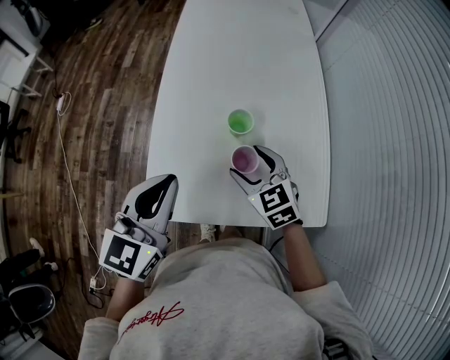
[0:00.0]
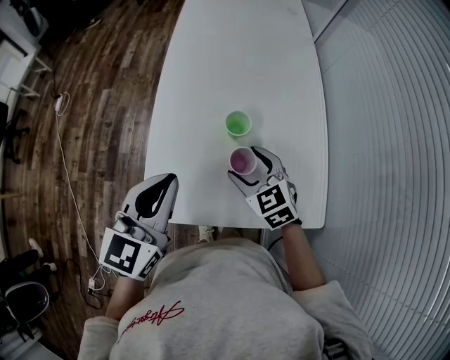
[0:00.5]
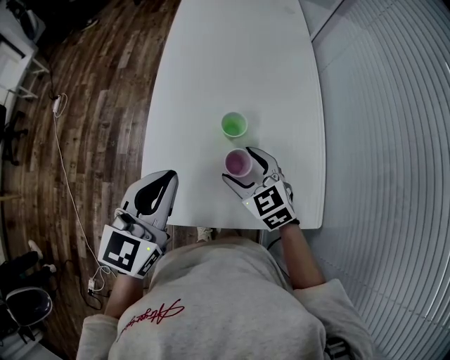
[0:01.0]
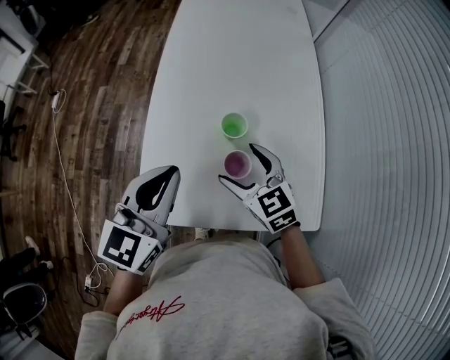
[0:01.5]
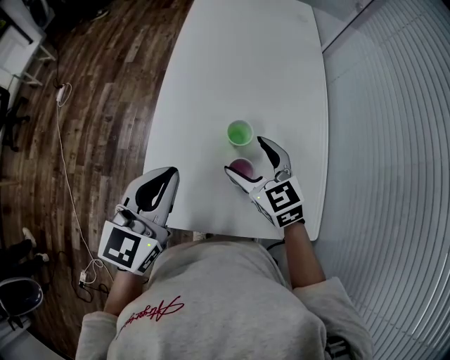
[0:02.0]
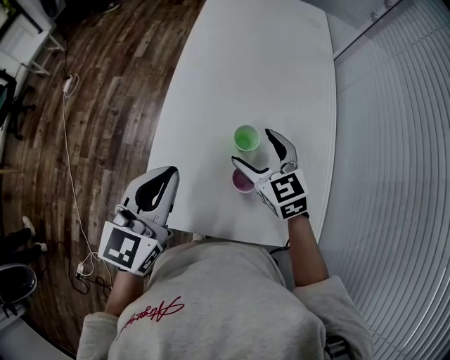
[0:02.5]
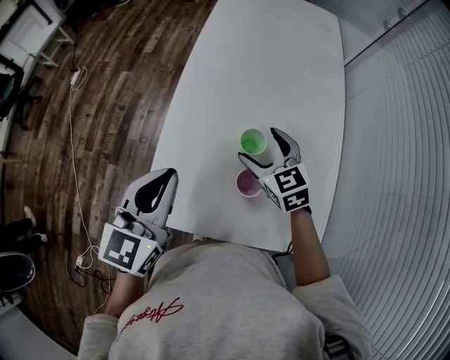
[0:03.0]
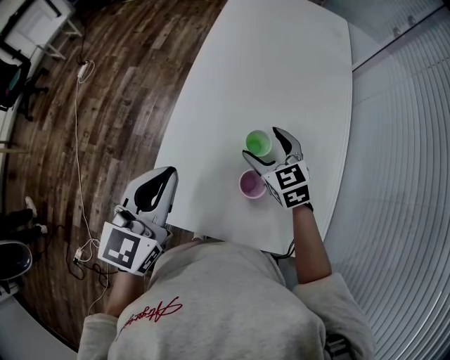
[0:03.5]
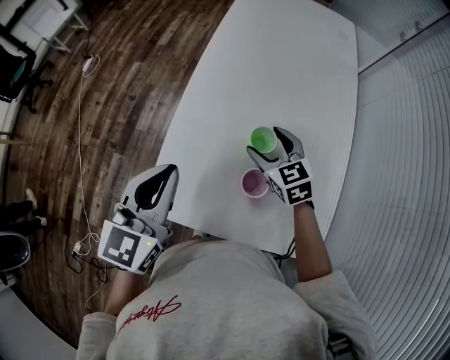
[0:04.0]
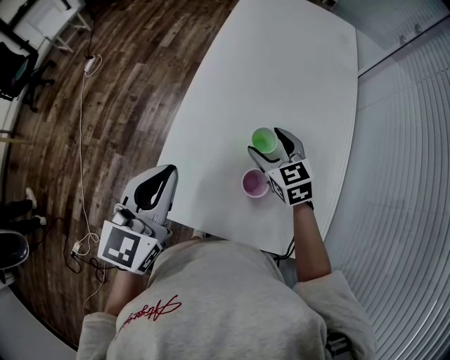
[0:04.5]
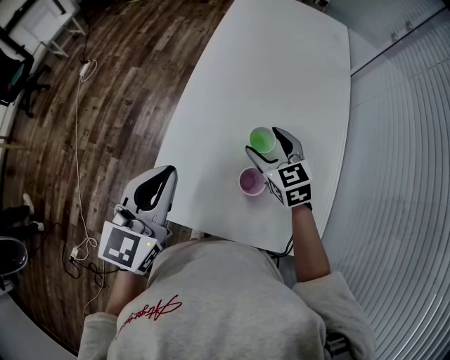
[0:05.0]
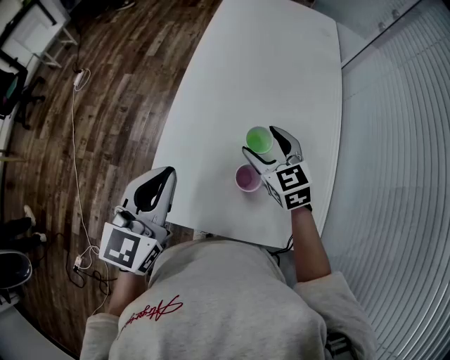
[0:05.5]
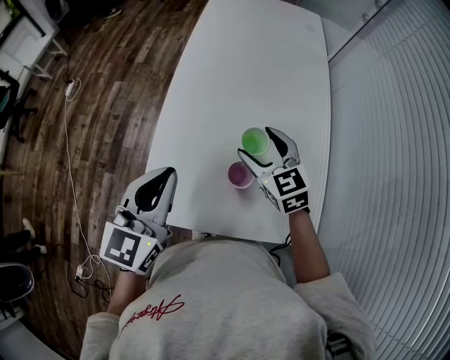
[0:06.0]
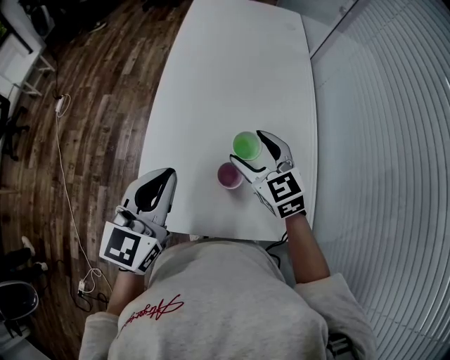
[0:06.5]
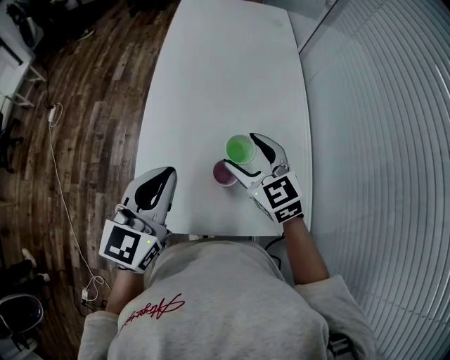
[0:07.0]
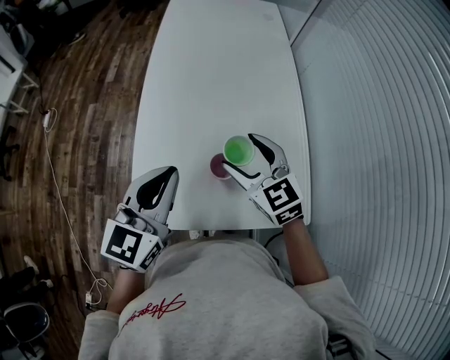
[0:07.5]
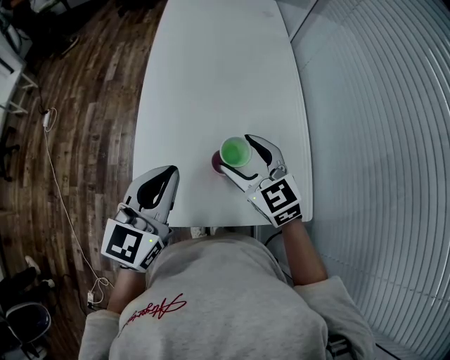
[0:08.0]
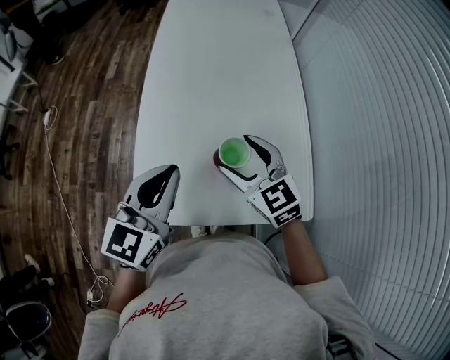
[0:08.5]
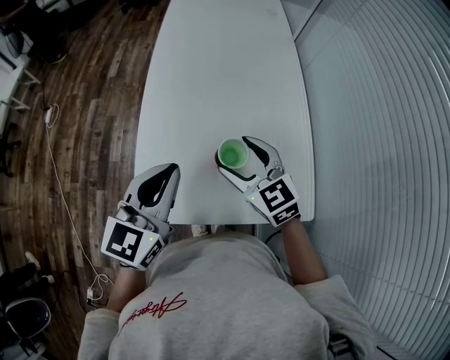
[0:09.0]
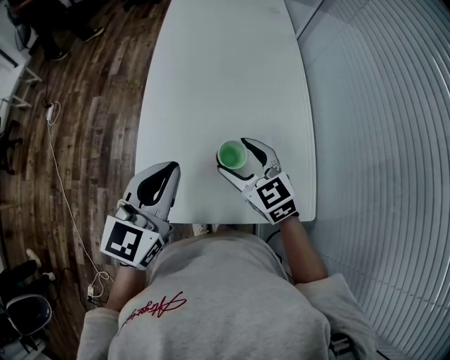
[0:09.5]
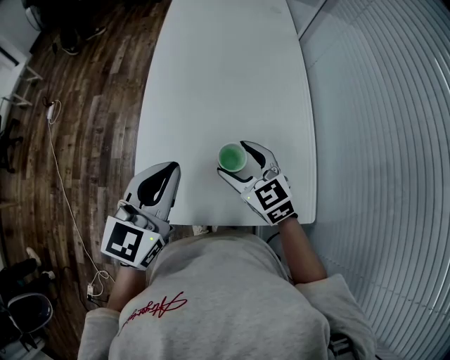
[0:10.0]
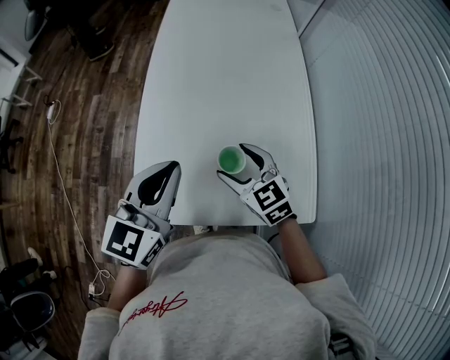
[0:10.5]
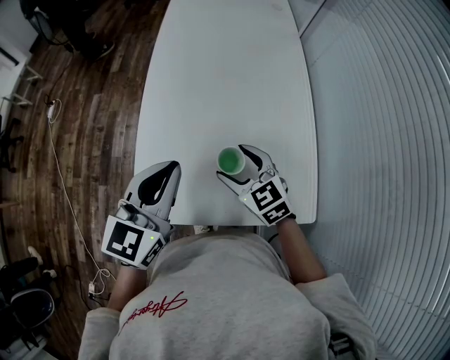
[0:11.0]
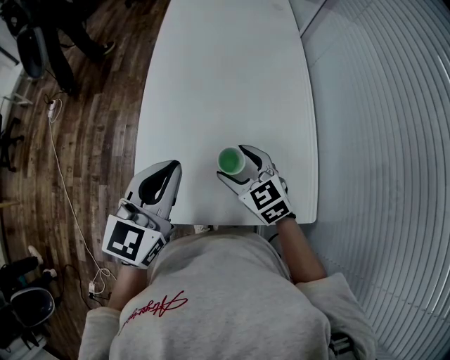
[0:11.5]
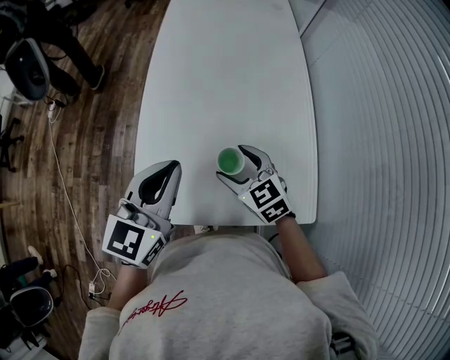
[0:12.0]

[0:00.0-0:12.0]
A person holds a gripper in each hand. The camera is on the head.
0:00.0 to 0:02.0: The right gripper ends up some 5 cm from where it was.
0:02.0 to 0:04.0: The right gripper moves forward and downward, approximately 10 cm.
0:04.0 to 0:06.0: The right gripper heads upward, covering approximately 5 cm.
0:06.0 to 0:08.0: The right gripper shifts roughly 10 cm backward.
0:08.0 to 0:10.0: The right gripper heads downward, covering approximately 5 cm.
0:10.0 to 0:12.0: The grippers make only small movements.

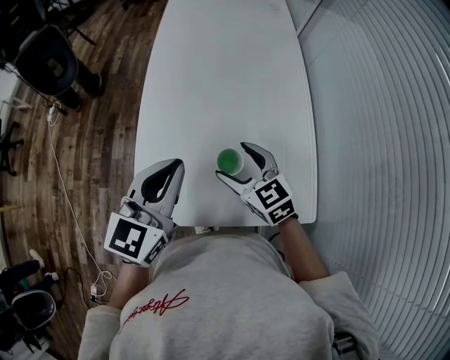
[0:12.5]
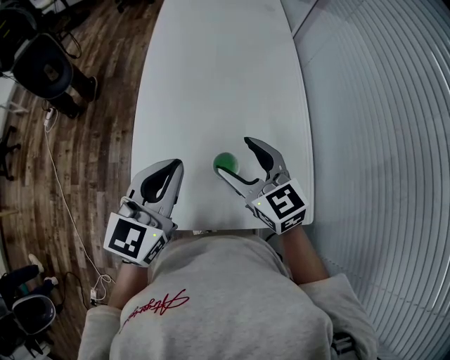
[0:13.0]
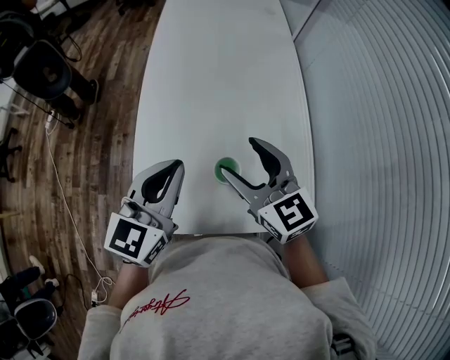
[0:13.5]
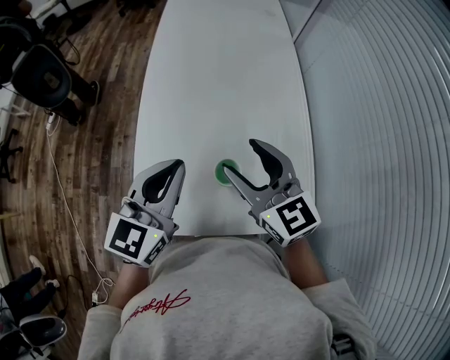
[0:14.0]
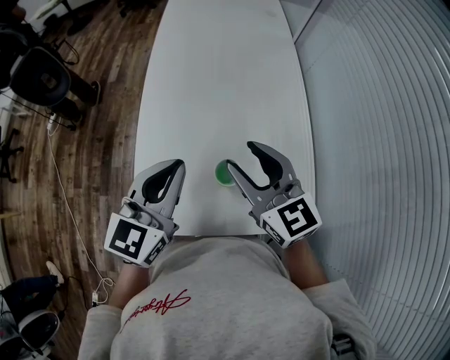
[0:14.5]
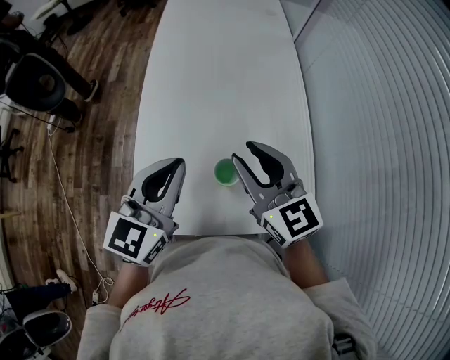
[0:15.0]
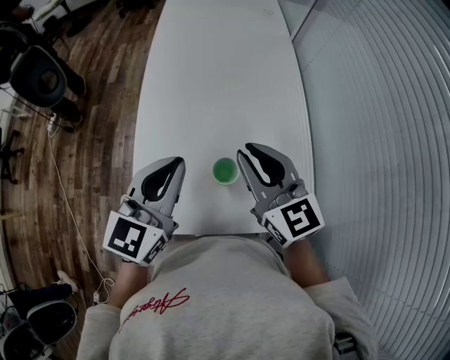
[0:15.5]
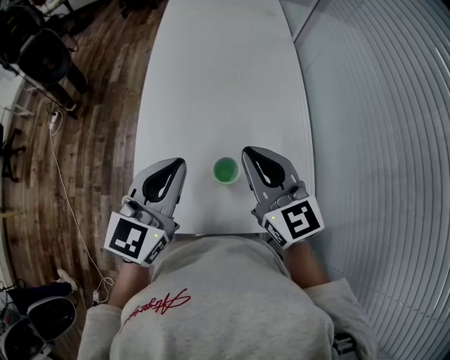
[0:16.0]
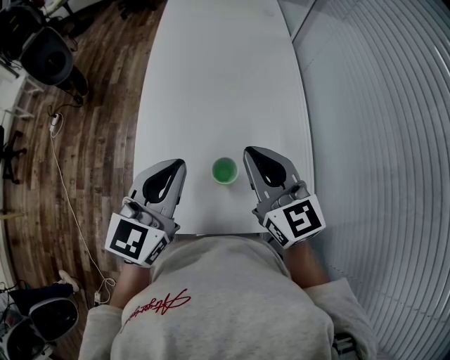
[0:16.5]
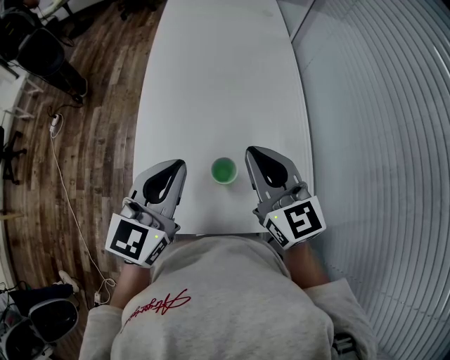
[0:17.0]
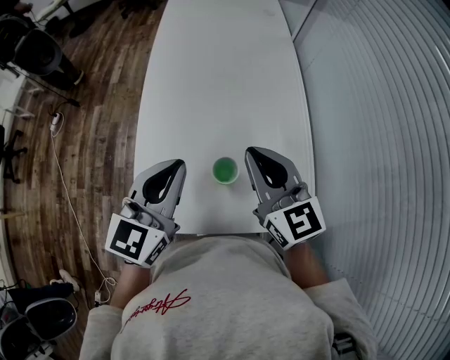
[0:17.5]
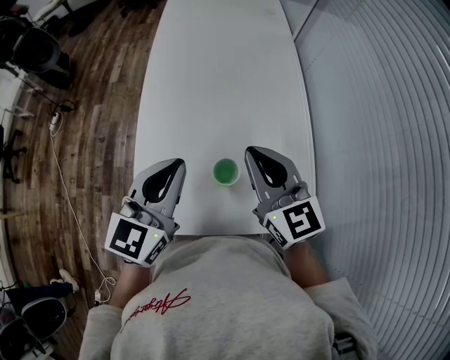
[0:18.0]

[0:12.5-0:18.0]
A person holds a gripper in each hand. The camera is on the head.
0:12.5 to 0:14.5: The right gripper heads upward, covering approximately 10 cm, and closes its fingers.
0:14.5 to 0:16.0: The right gripper closes up.
0:16.0 to 0:18.0: The two grippers keep their place.

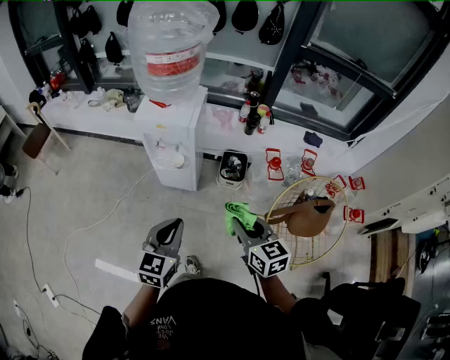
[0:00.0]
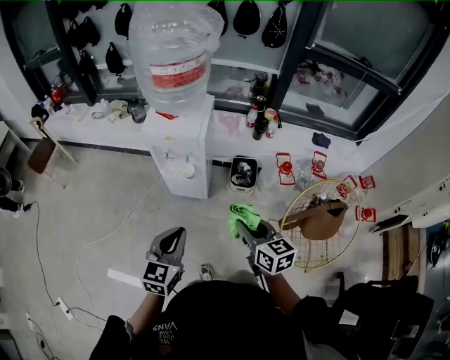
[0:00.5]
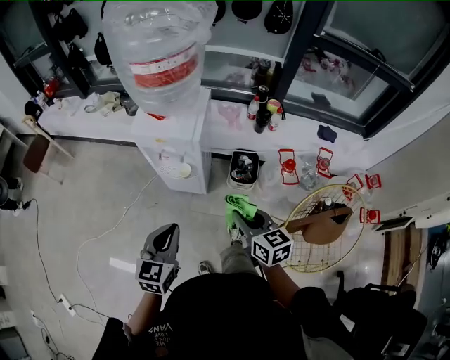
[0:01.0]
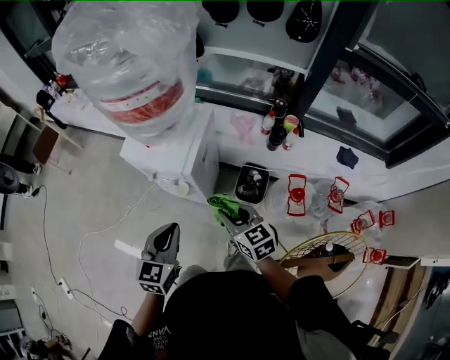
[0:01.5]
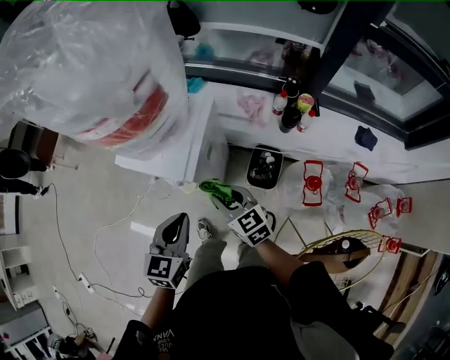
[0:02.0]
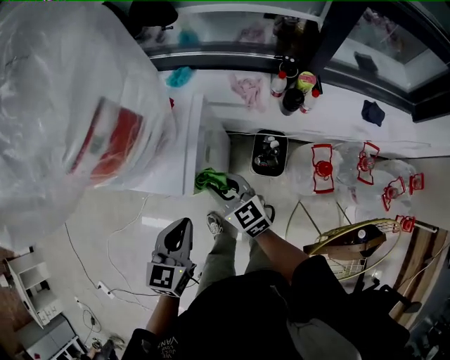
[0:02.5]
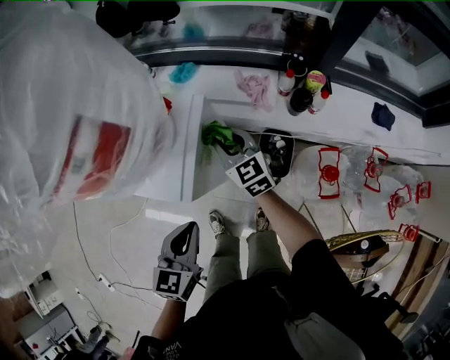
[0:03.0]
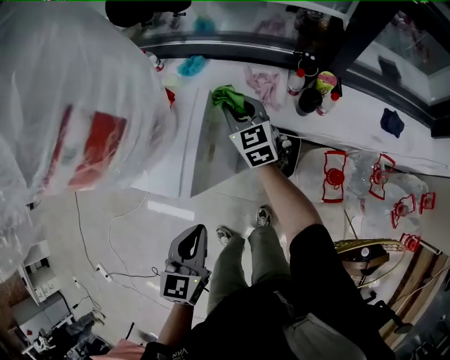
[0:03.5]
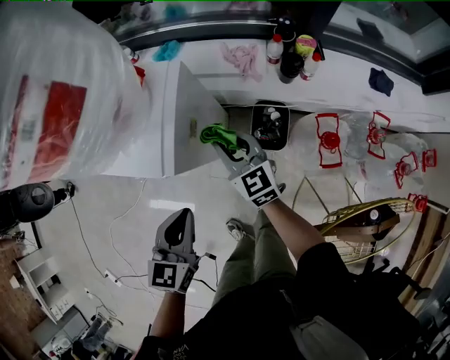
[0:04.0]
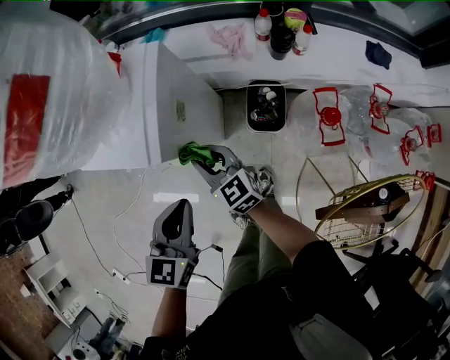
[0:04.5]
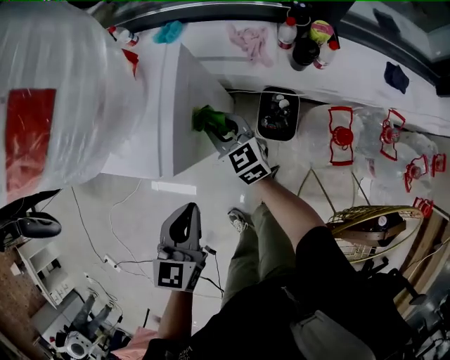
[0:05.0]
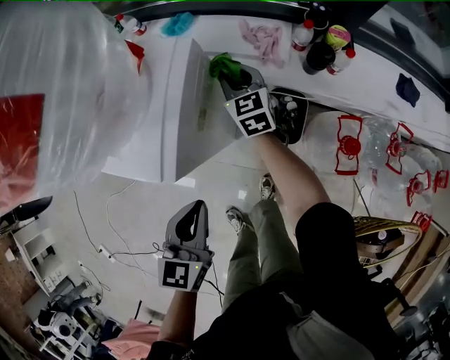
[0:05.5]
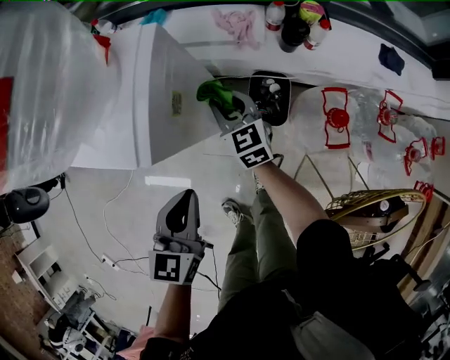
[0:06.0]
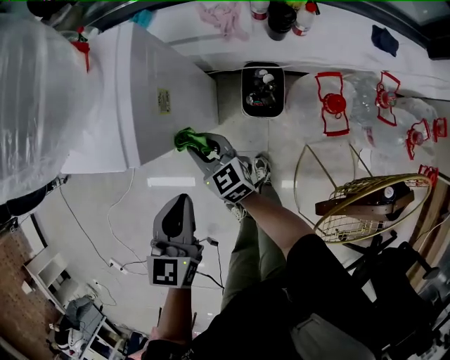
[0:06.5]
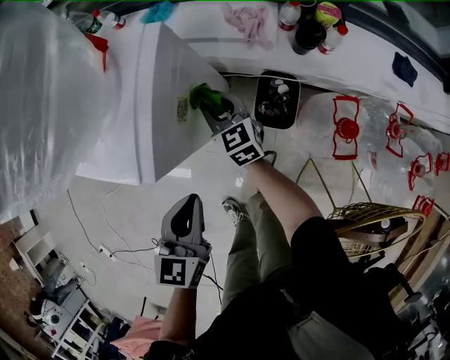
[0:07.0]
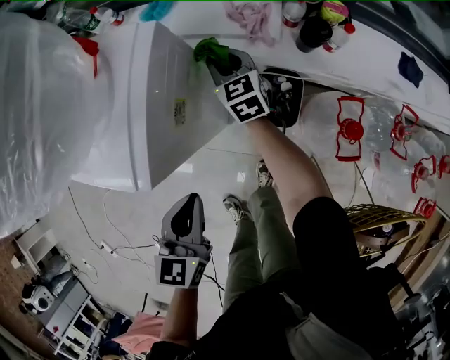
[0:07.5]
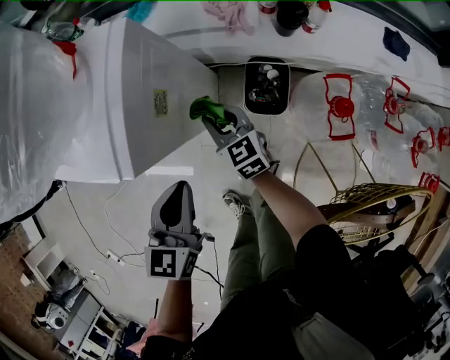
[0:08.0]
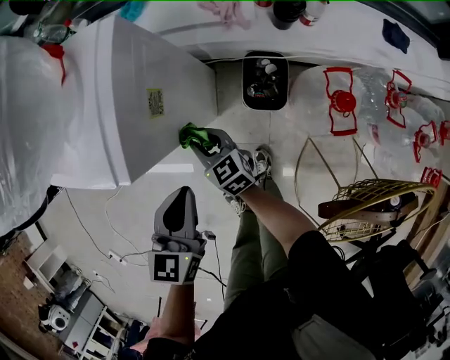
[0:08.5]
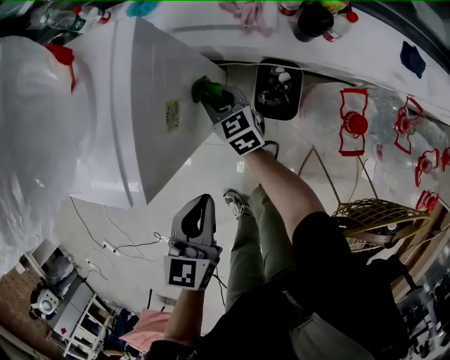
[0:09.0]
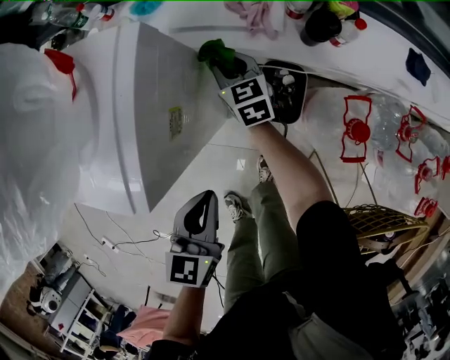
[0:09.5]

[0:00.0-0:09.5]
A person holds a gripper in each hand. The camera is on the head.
0:00.0 to 0:02.0: The two grippers go about 35 cm forward. The right gripper swivels approximately 20 degrees.
0:02.0 to 0:04.0: The right gripper heads to the right and downward, covering about 5 cm, and travels forward and back again, about 25 cm each way. The left gripper heads downward, covering roughly 5 cm.
0:04.0 to 0:05.5: The right gripper travels forward and downward by approximately 20 cm. The left gripper ends up about 5 cm from where it was.
0:05.5 to 0:07.5: The right gripper moves about 25 cm backward and comes back.
0:07.5 to 0:09.5: The right gripper moves approximately 25 cm backward and comes back.
